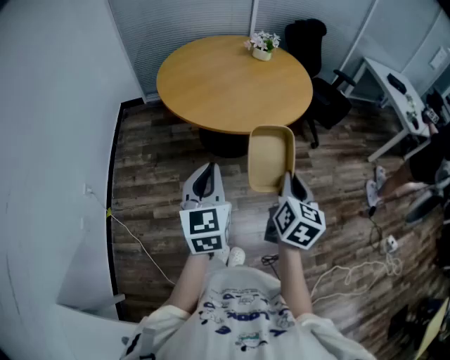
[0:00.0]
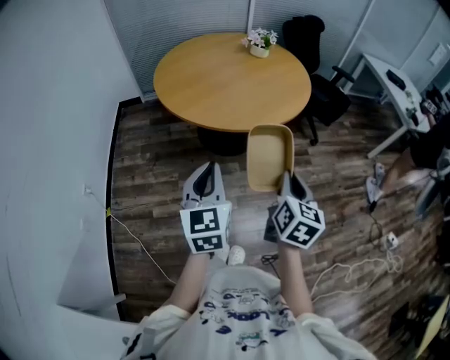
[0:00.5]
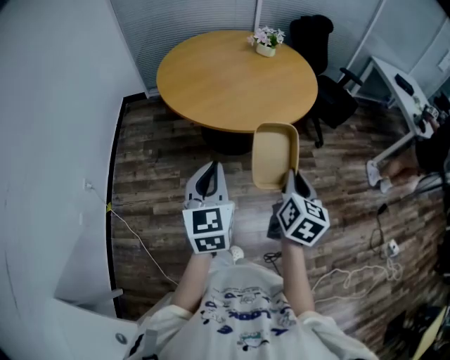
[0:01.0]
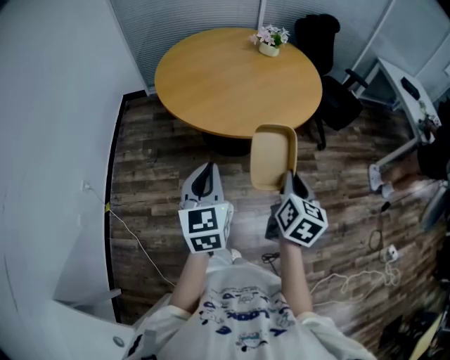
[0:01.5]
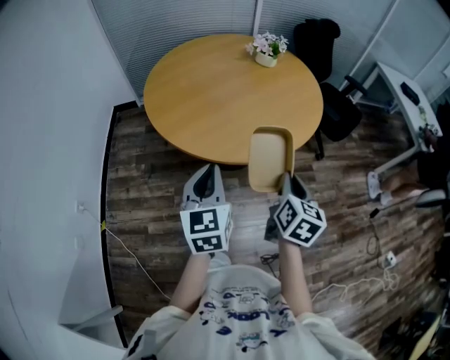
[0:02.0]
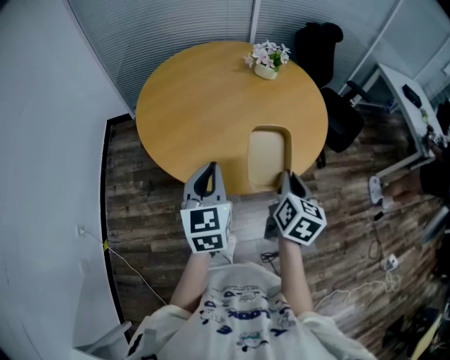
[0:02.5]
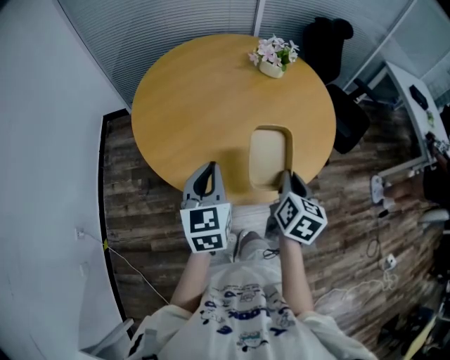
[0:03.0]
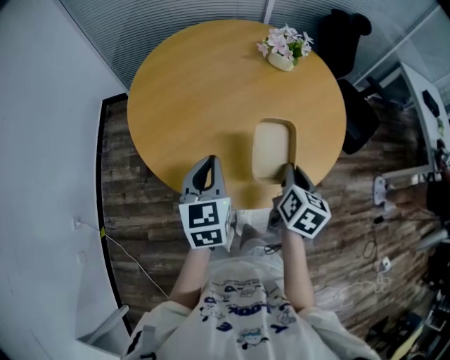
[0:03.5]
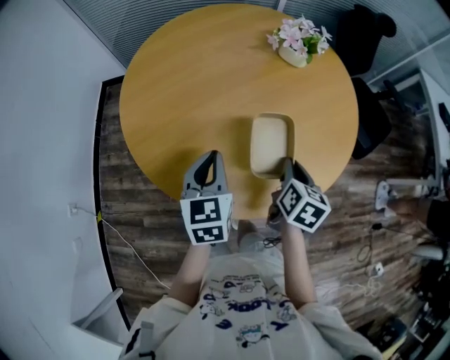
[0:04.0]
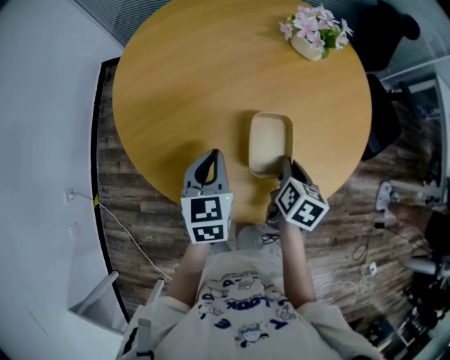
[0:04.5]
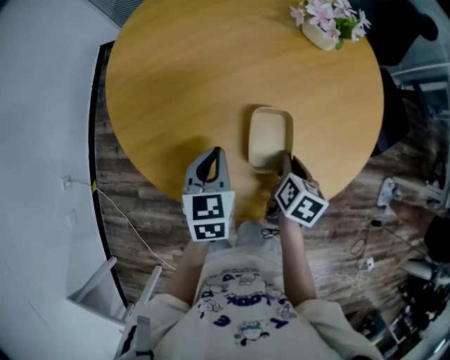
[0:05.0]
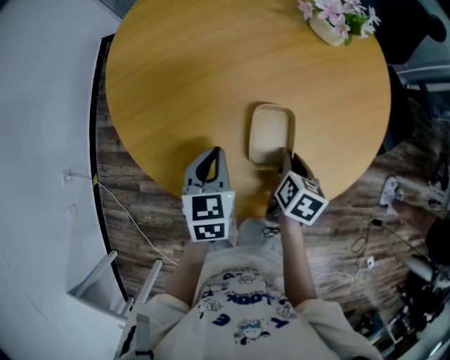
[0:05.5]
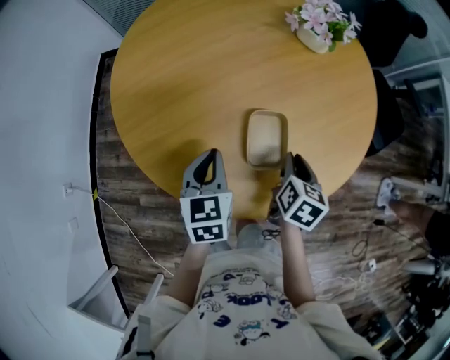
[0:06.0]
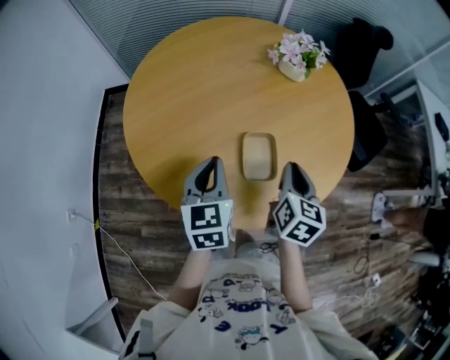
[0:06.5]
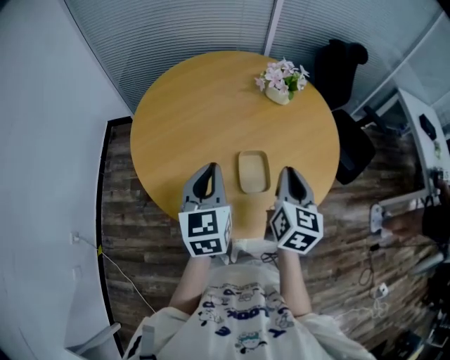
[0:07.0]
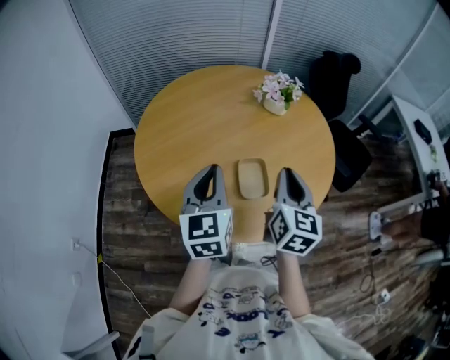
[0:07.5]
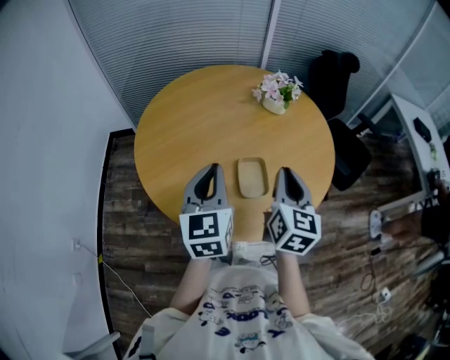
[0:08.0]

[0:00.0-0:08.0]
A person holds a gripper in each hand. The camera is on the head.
0:00.0 to 0:02.0: Both grippers move forward, roughly 20 cm.
0:02.0 to 0:04.0: The grippers both shift forward by approximately 30 cm.
0:04.0 to 0:06.0: Both grippers travel together downward, about 5 cm.
0:06.0 to 0:08.0: Both grippers travel together upward, about 25 cm. The right gripper points its fingers some 30 degrees further upward, while the left gripper turns by approximately 30 degrees.

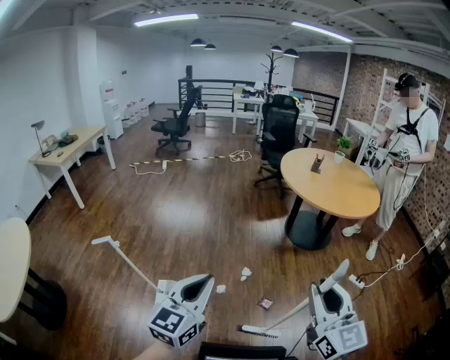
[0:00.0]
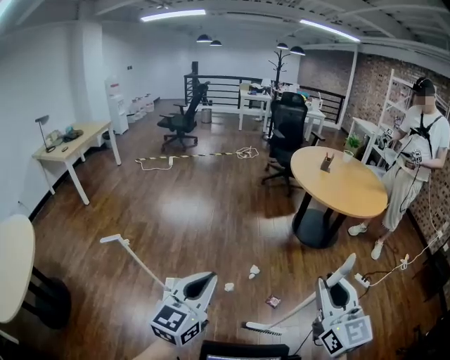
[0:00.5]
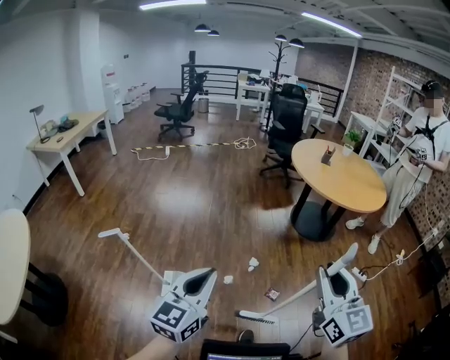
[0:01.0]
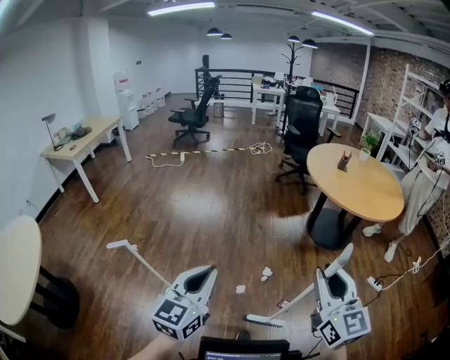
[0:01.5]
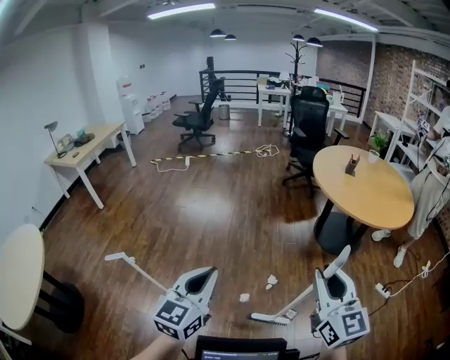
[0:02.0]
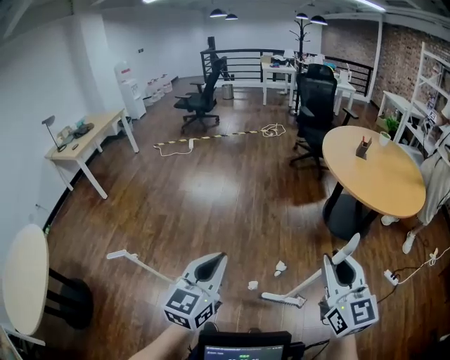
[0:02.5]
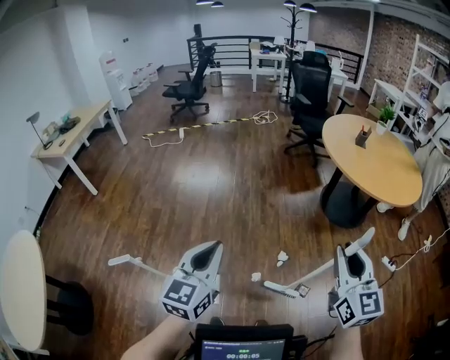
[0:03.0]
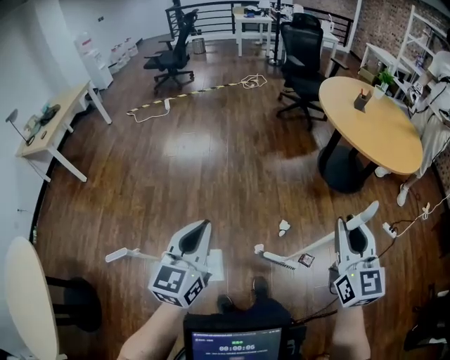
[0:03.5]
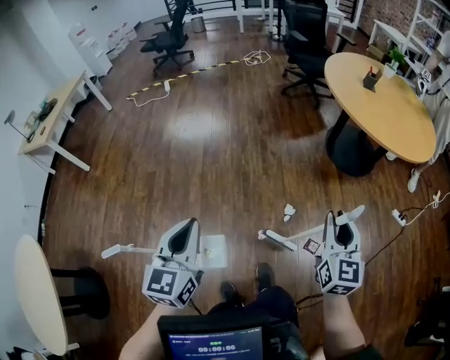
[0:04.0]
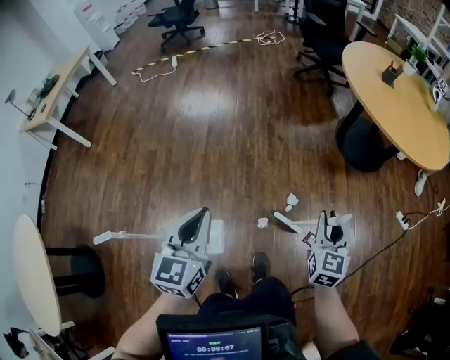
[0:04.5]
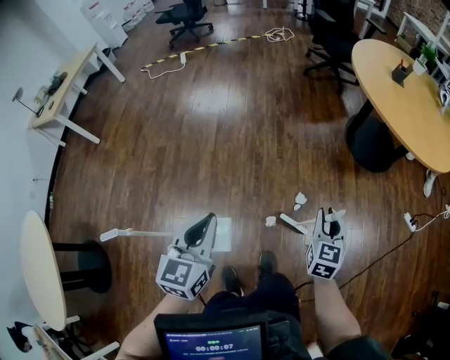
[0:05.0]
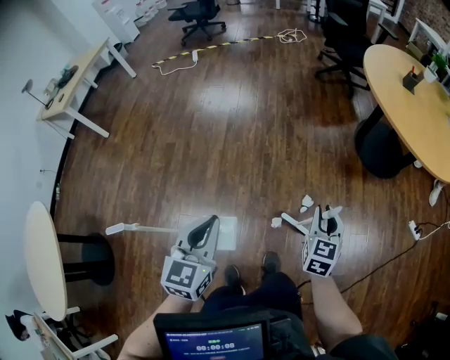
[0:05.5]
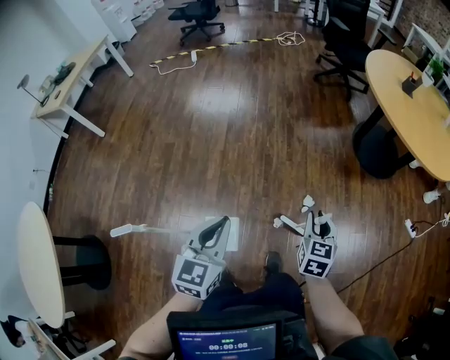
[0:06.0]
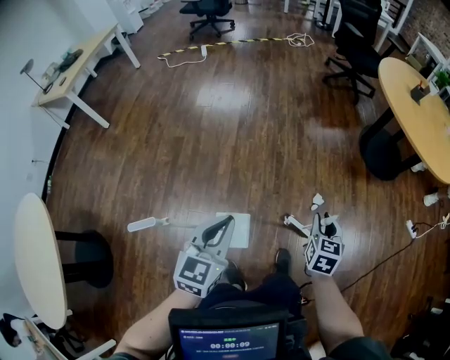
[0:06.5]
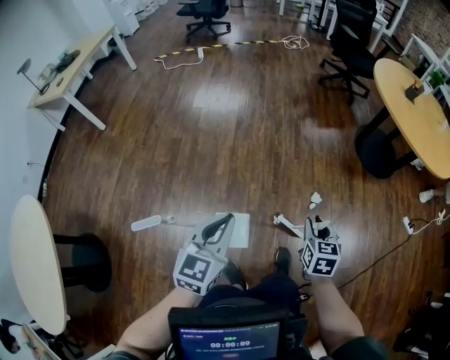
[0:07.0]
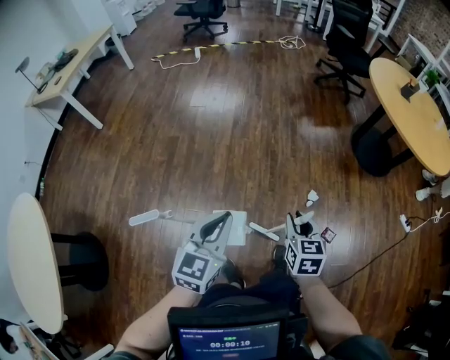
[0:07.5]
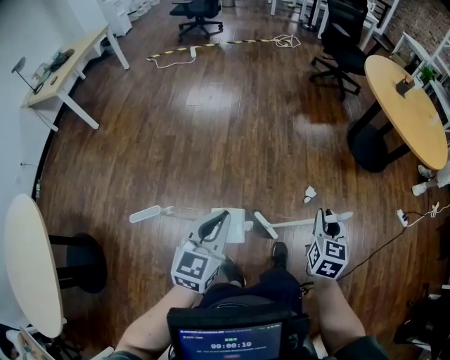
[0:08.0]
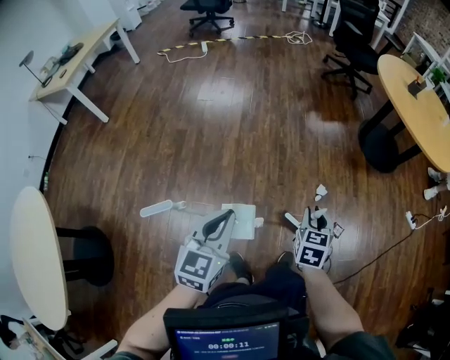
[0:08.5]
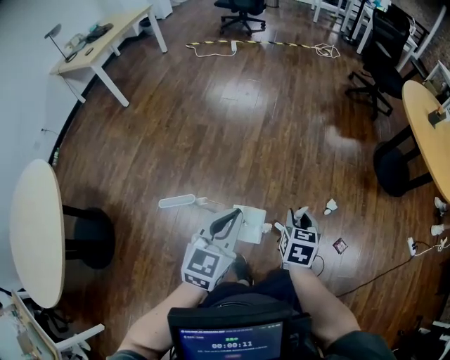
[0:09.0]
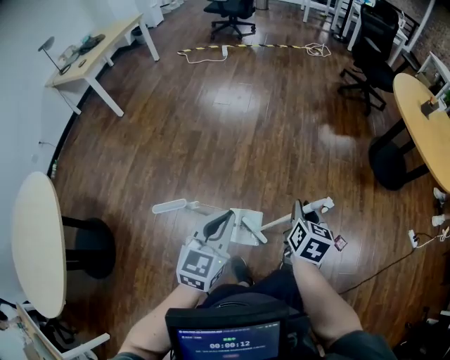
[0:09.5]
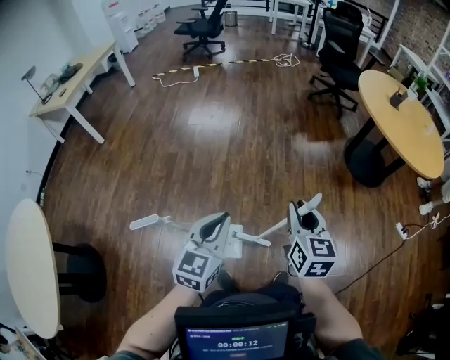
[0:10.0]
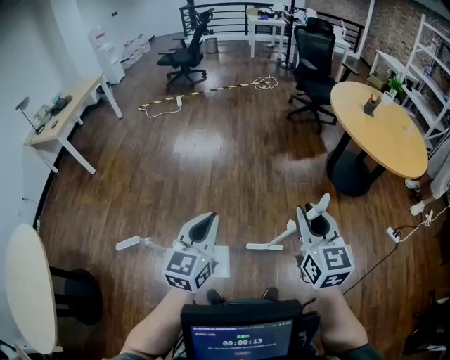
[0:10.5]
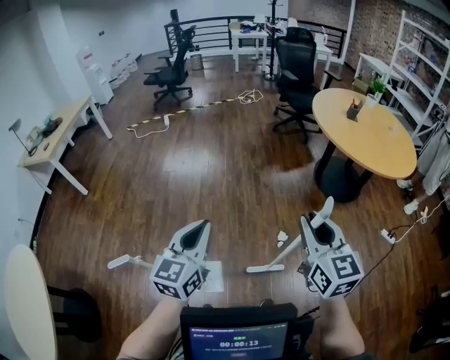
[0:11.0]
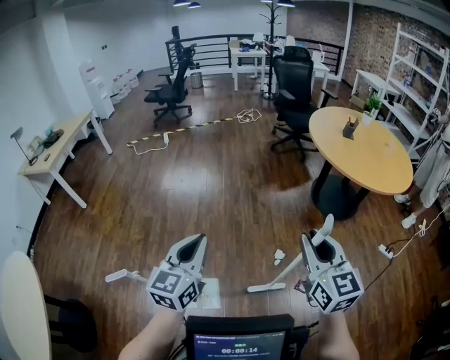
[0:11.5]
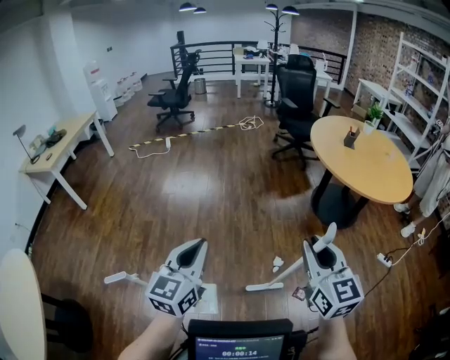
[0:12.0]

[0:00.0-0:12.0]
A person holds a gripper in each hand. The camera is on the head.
0:00.0 to 0:02.0: The two grippers go some 30 cm forward and to the left.
0:02.0 to 0:04.0: The left gripper travels forward, to the left and downward by some 40 cm. The right gripper is displaced forward and downward by roughly 40 cm, and swivels roughly 30 degrees.
0:04.0 to 0:06.0: The right gripper goes approximately 25 cm downward and to the left, and rotates roughly 20 degrees; the left gripper shifts some 10 cm downward.
0:06.0 to 0:08.0: The left gripper moves to the left and backward, approximately 25 cm. The right gripper travels backward and to the left by about 25 cm.
0:08.0 to 0:10.0: The right gripper shifts about 10 cm upward, goes to the left and returns, about 25 cm each way, and rotates some 20 degrees. Meanwhile the left gripper goes about 5 cm upward, and goes to the left and returns, about 10 cm each way.
0:10.0 to 0:12.0: The grippers both shift to the right and upward by about 30 cm.

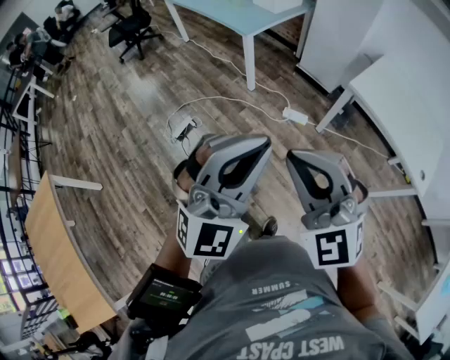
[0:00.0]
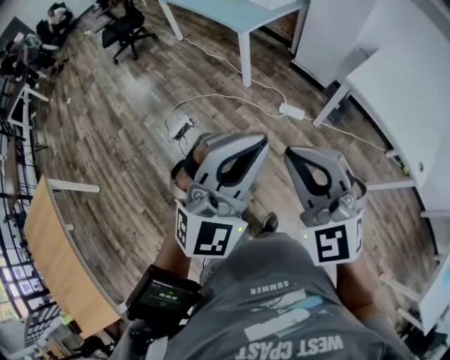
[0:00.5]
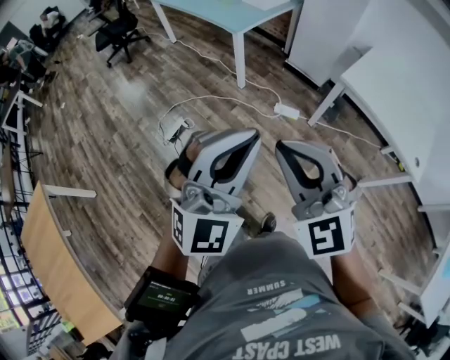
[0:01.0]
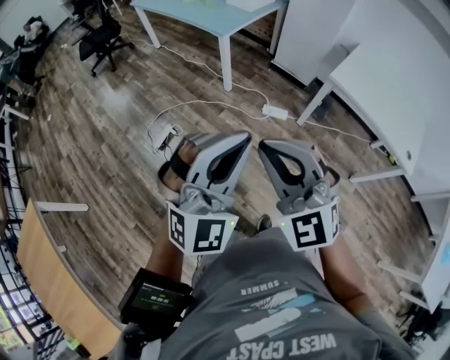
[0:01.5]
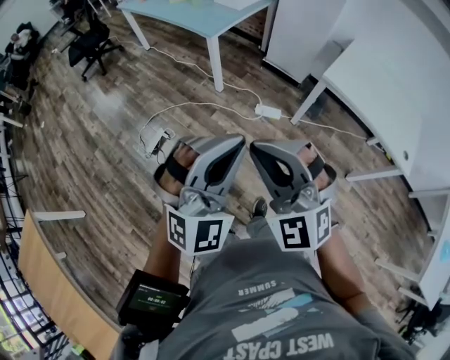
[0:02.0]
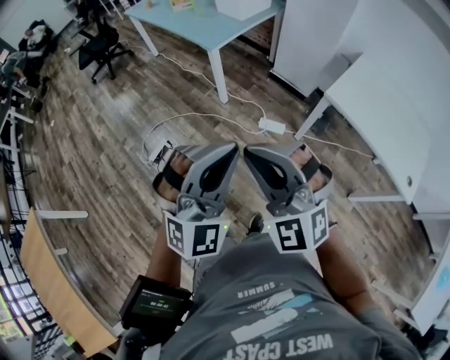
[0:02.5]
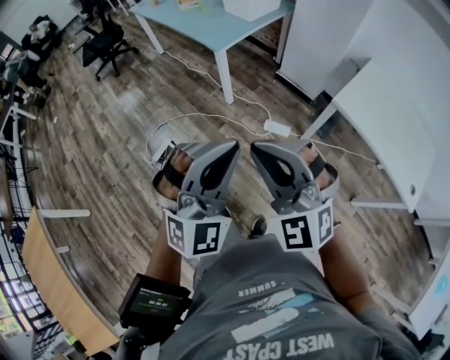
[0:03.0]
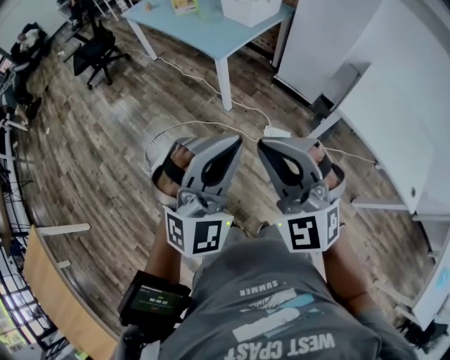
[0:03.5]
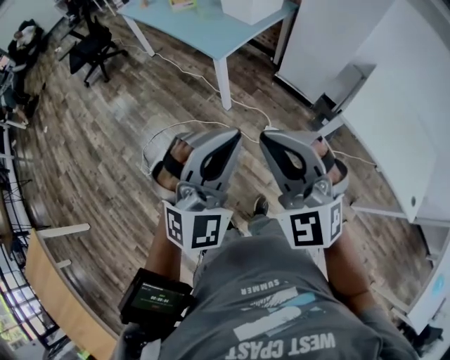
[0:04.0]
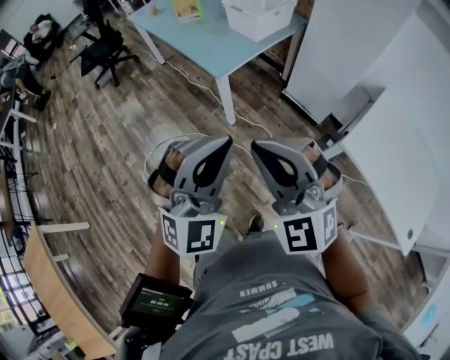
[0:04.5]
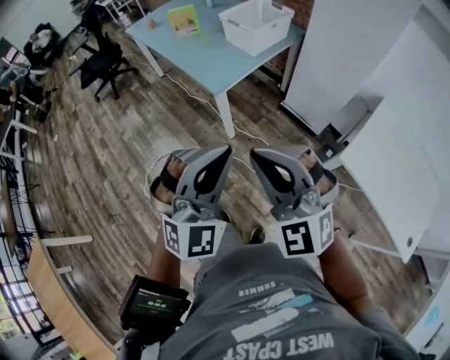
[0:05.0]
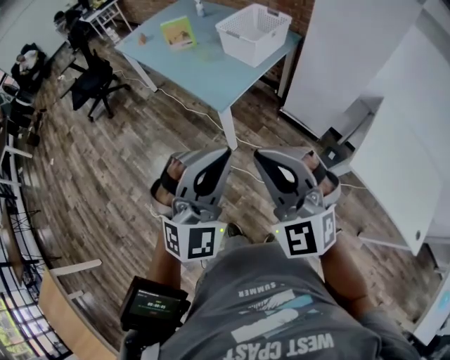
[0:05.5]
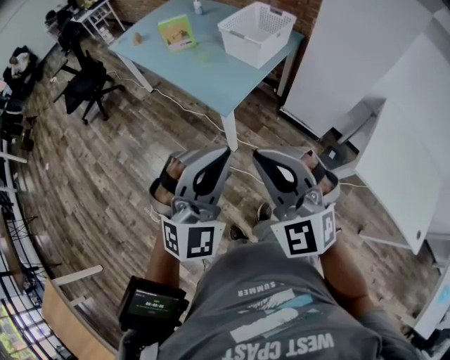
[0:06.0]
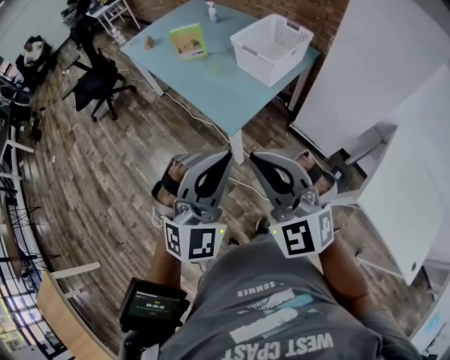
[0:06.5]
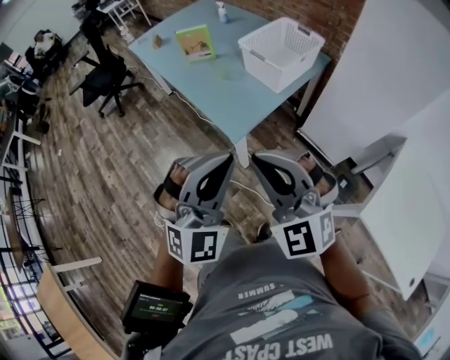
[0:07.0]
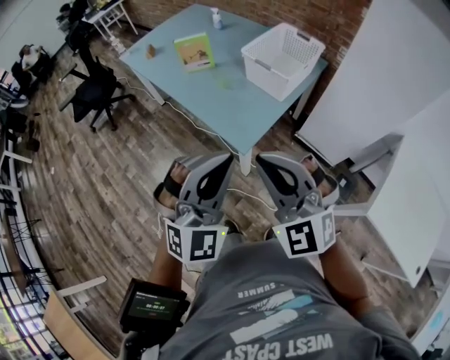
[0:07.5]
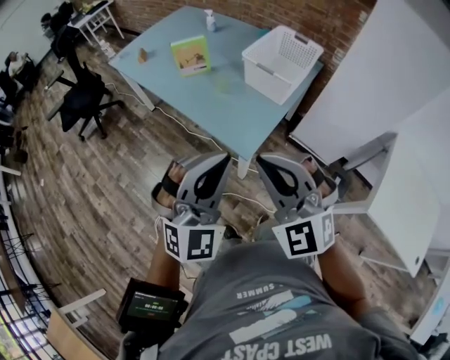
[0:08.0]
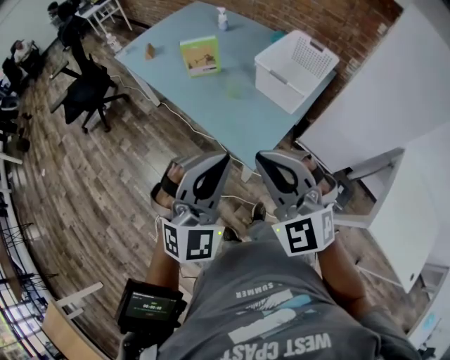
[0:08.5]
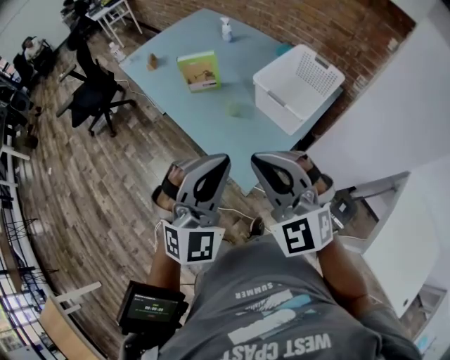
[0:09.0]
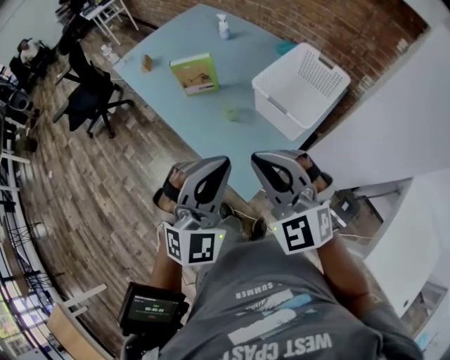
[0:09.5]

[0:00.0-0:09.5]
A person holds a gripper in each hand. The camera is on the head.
0:00.0 to 0:02.0: The left gripper shifts roughly 10 cm forward and downward, while the right gripper shifts roughly 10 cm forward.
0:02.0 to 0:04.0: Both grippers travel together forward, about 25 cm.
0:04.0 to 0:05.5: The grippers both shift forward by roughly 20 cm.
0:05.5 to 0:07.5: Both grippers travel together forward, about 20 cm.
0:07.5 to 0:09.5: The grippers both shift forward by approximately 25 cm.
